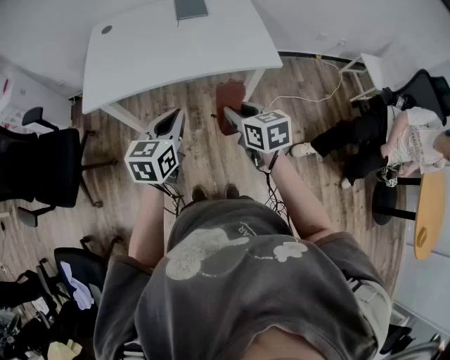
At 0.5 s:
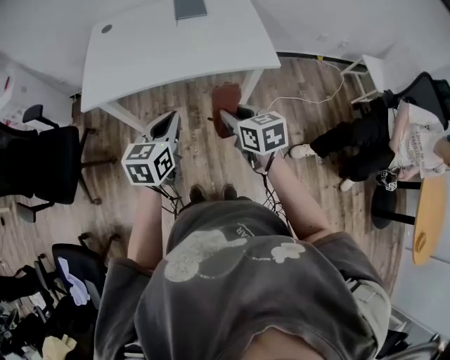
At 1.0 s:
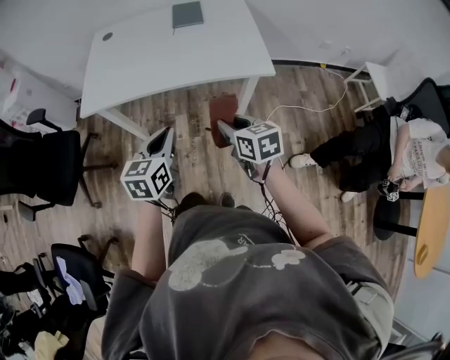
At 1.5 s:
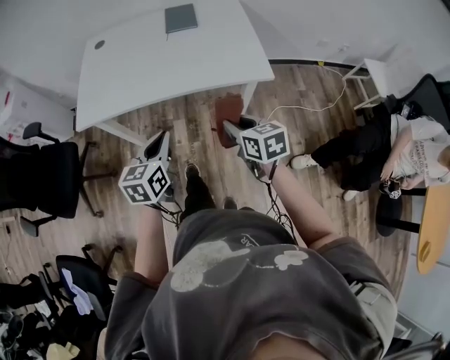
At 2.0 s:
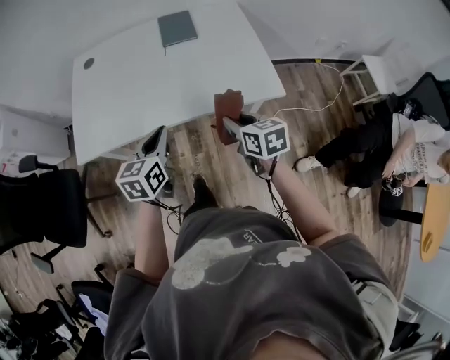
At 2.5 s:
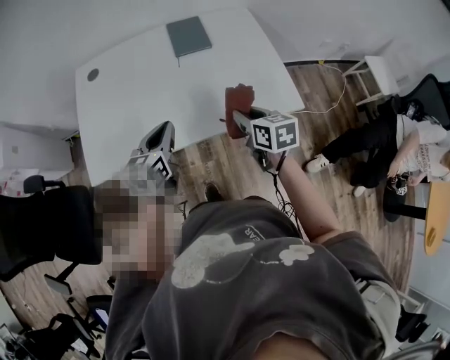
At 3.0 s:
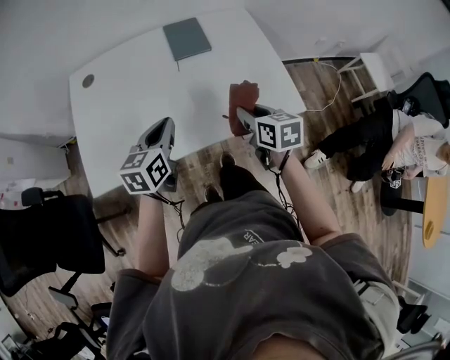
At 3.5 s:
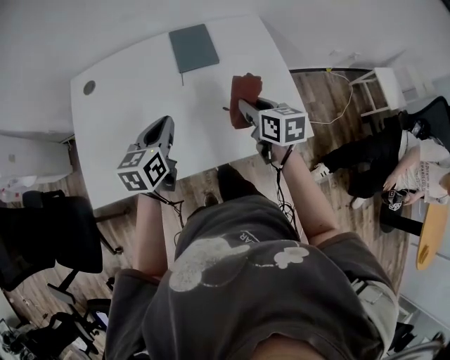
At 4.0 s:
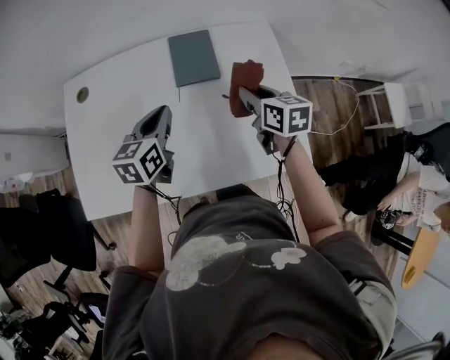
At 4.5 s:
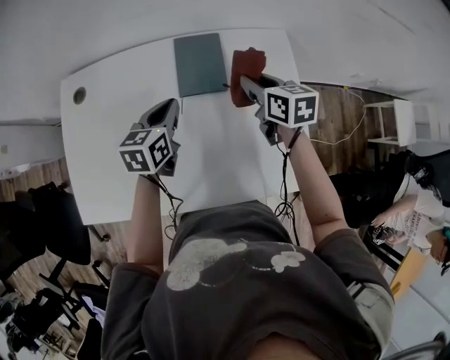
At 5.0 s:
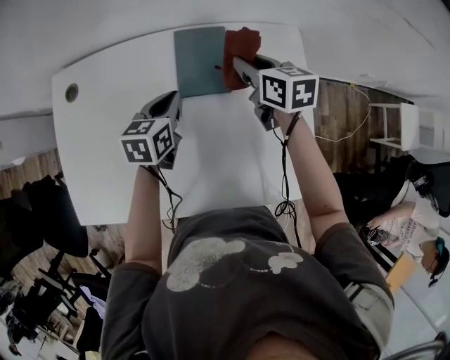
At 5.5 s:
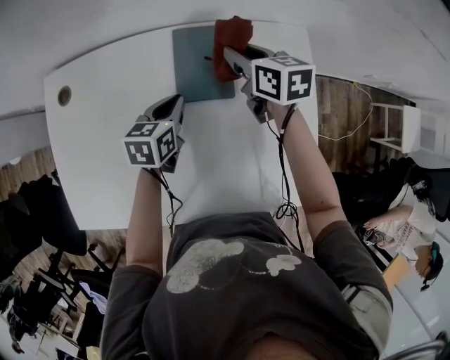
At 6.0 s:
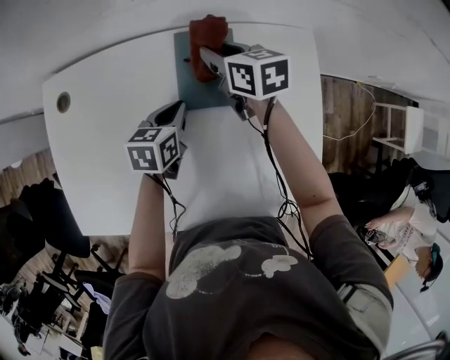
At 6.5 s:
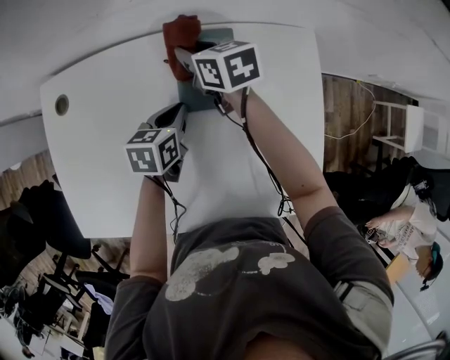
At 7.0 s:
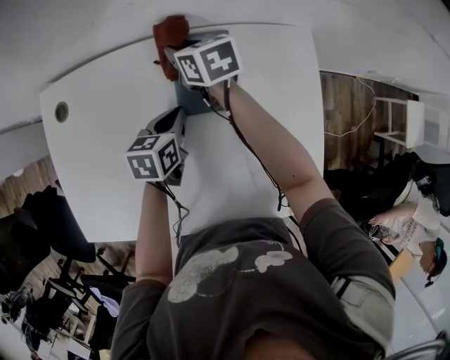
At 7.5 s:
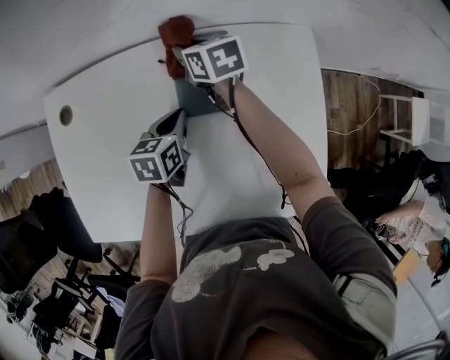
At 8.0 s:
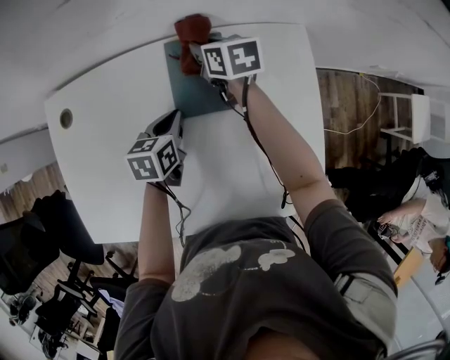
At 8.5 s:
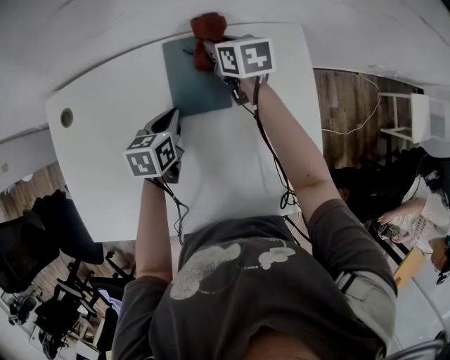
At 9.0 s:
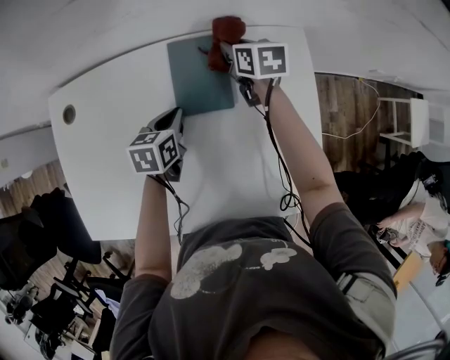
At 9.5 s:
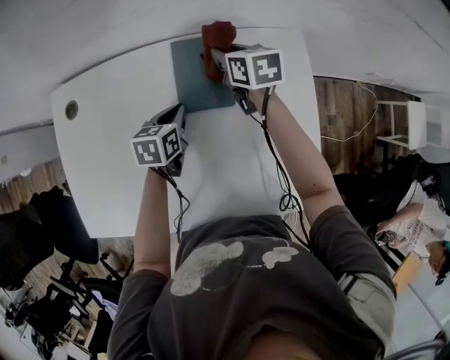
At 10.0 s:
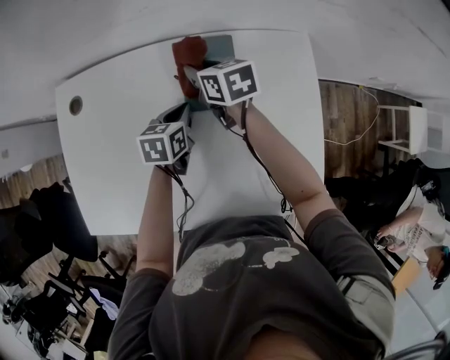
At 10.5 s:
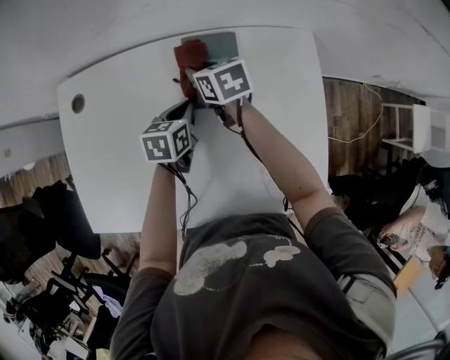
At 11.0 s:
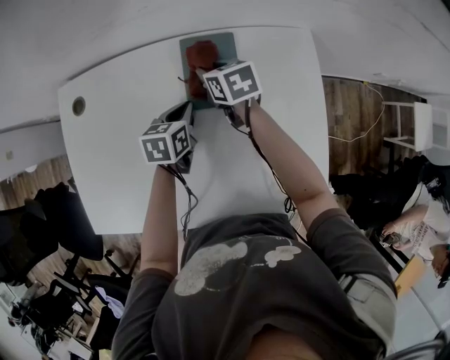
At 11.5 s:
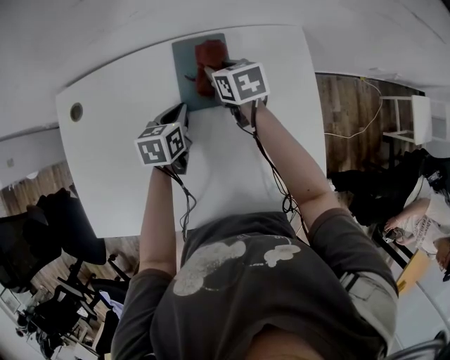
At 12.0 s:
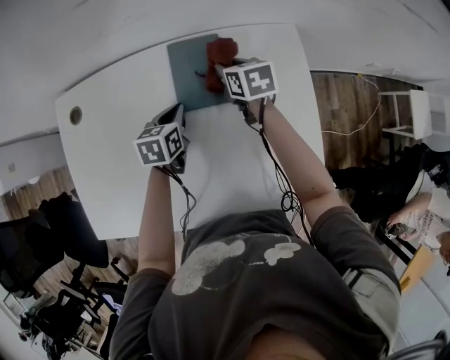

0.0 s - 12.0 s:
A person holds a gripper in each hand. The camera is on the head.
0.0 s - 2.0 s: The grippers both shift forward by roughly 15 cm.
2.0 s - 4.0 s: The two grippers go approximately 35 cm forward.
4.0 s - 6.0 s: The right gripper moves forward, some 25 cm; the left gripper is displaced downward and forward by some 20 cm, and swivels some 20 degrees.
6.0 s - 8.0 s: The right gripper reaches about 5 cm to the left, then returns.
8.0 s - 10.0 s: The right gripper shifts some 10 cm backward and to the left.
10.0 s - 12.0 s: The right gripper is displaced to the right by about 10 cm.

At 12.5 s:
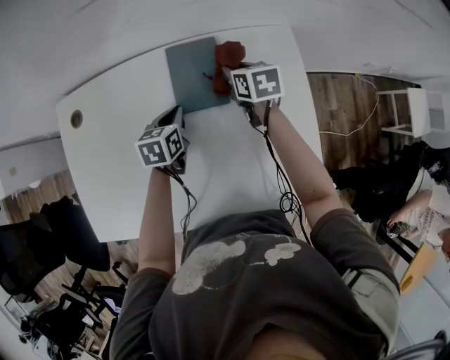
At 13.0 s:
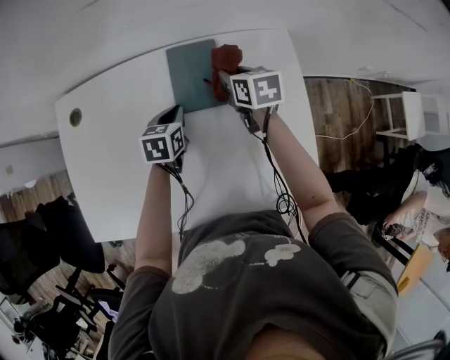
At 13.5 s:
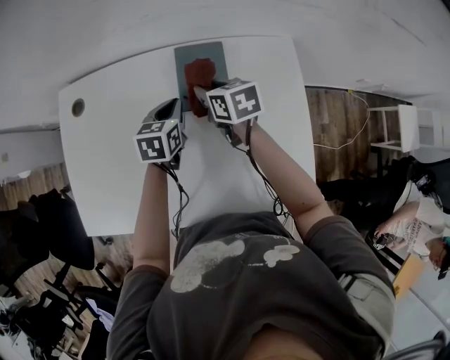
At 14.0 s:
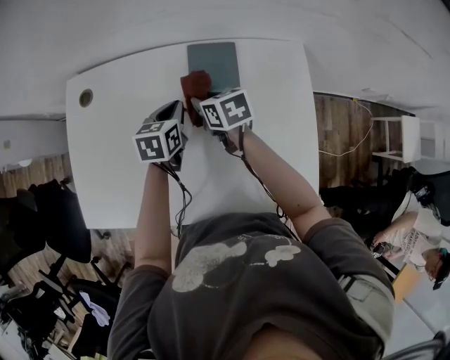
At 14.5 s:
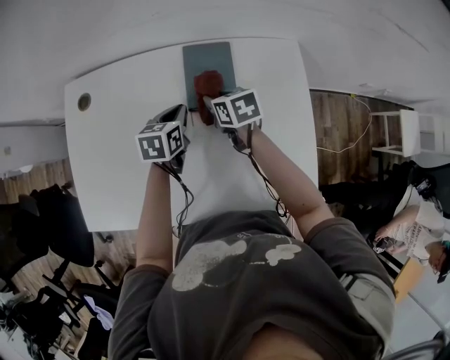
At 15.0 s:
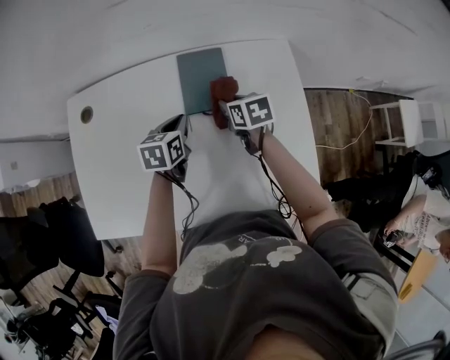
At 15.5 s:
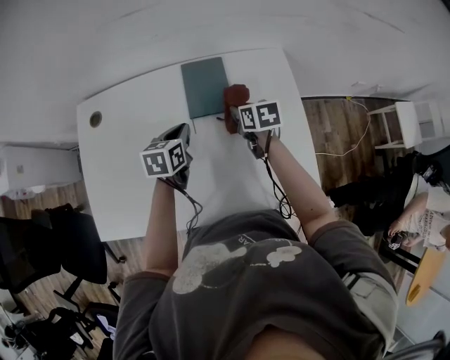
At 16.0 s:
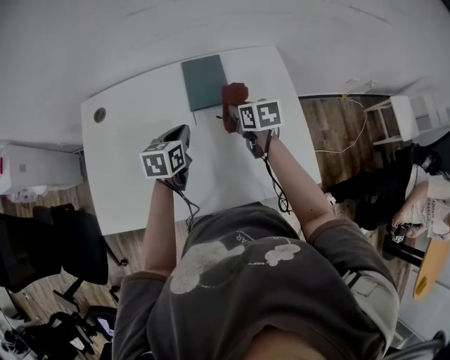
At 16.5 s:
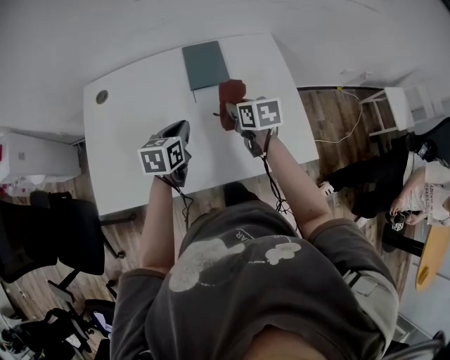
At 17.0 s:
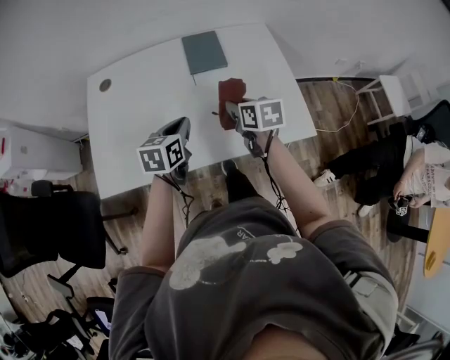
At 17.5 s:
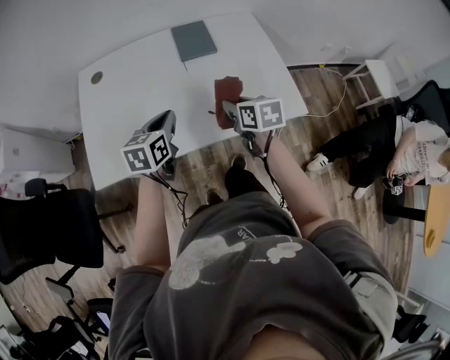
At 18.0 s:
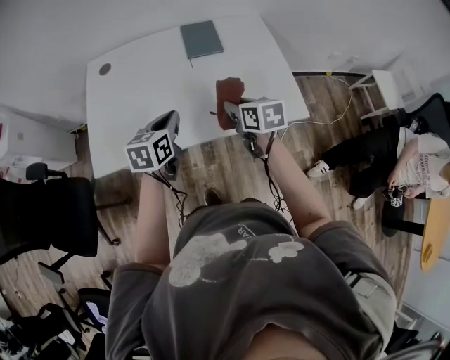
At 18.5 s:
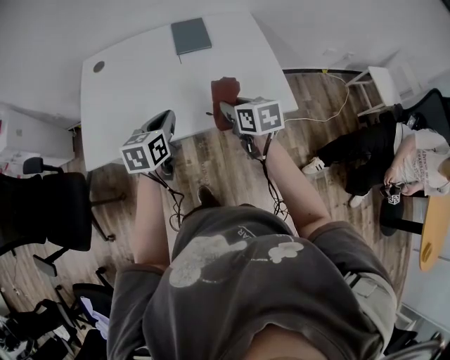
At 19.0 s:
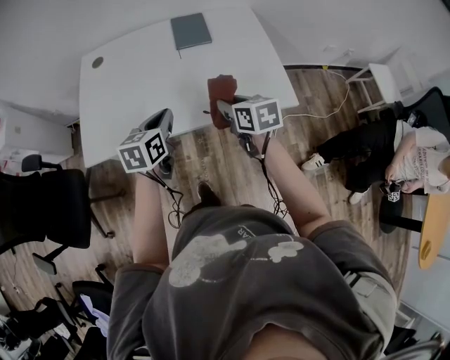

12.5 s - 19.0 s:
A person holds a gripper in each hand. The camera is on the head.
12.5 s - 14.5 s: The right gripper is displaced to the left and backward by some 15 cm.
14.5 s - 17.0 s: The two grippers go about 25 cm backward.
17.0 s - 19.0 s: The two grippers go some 10 cm backward.

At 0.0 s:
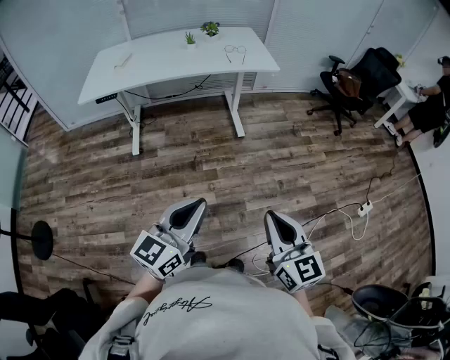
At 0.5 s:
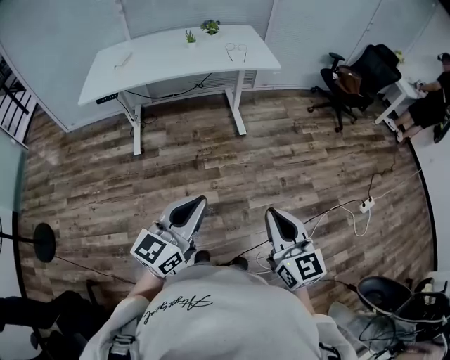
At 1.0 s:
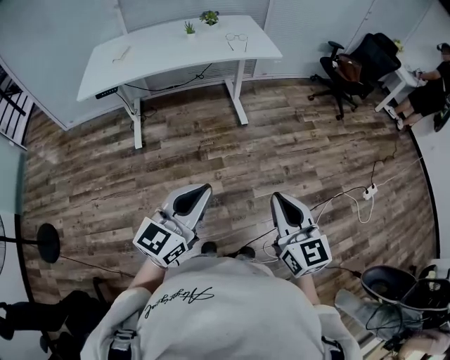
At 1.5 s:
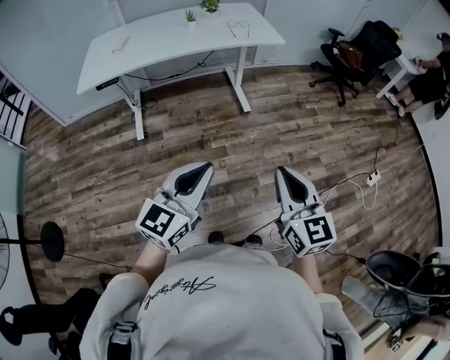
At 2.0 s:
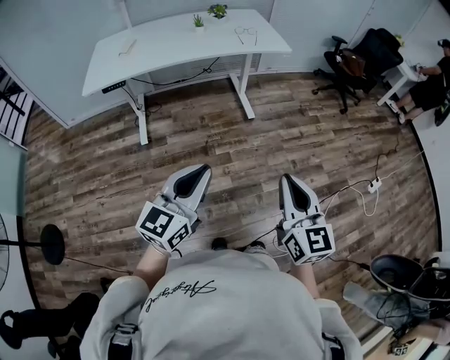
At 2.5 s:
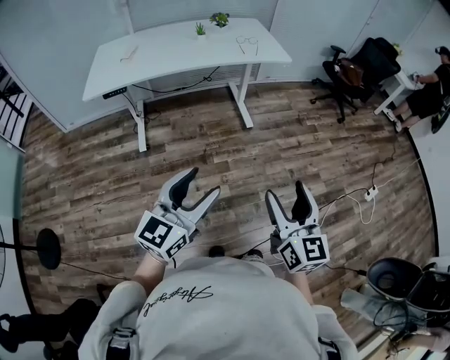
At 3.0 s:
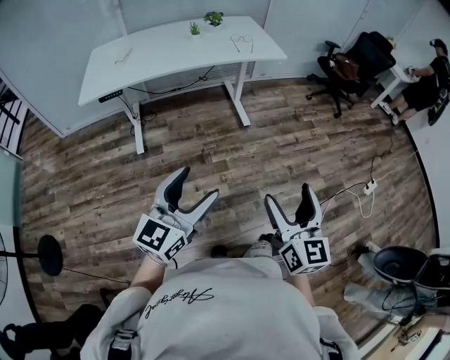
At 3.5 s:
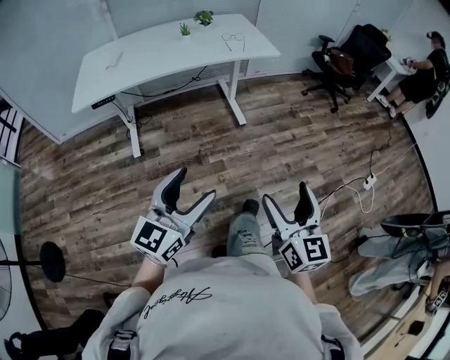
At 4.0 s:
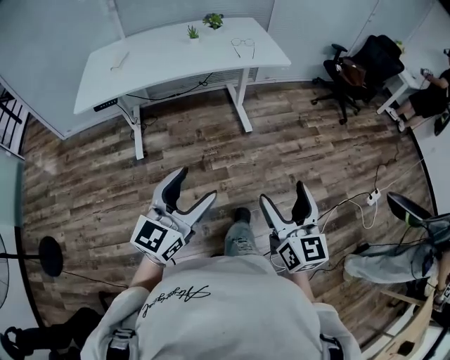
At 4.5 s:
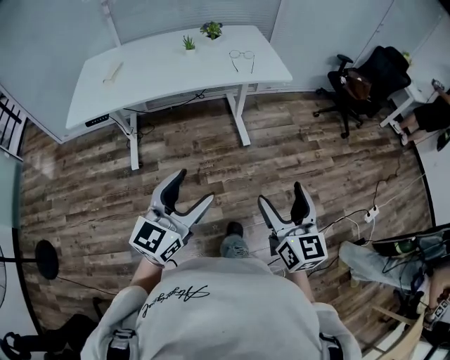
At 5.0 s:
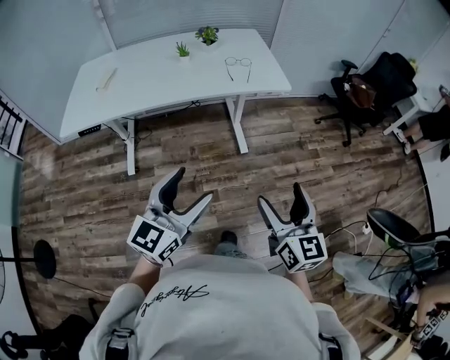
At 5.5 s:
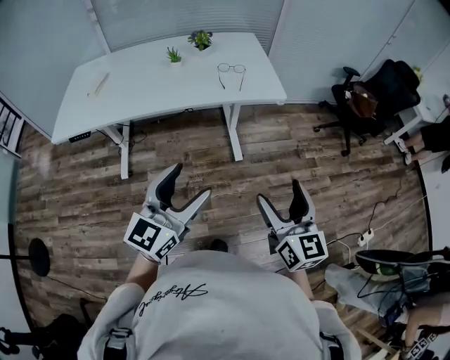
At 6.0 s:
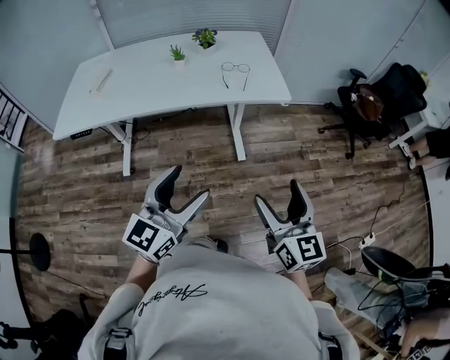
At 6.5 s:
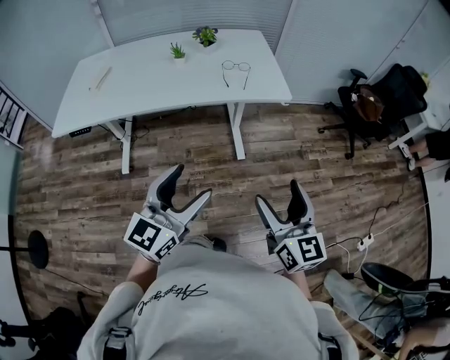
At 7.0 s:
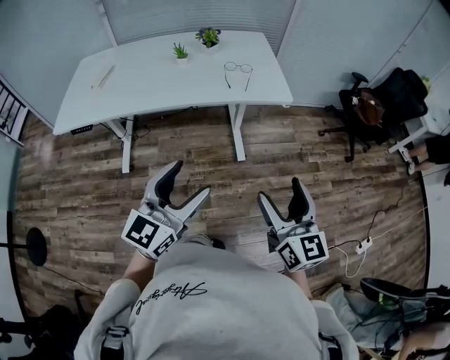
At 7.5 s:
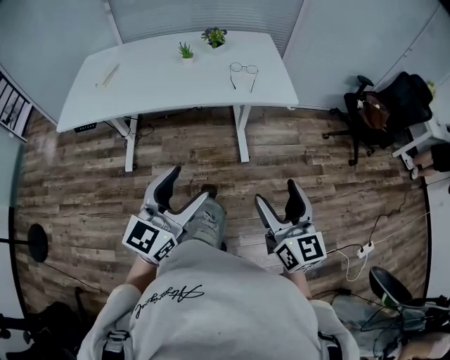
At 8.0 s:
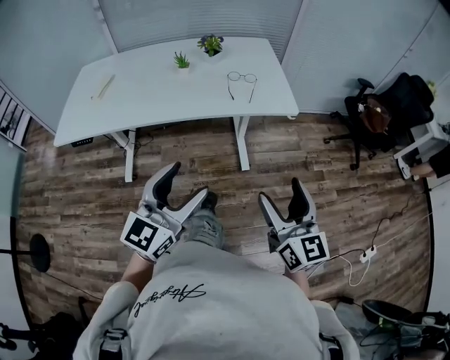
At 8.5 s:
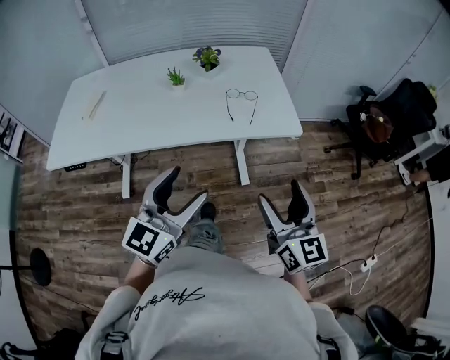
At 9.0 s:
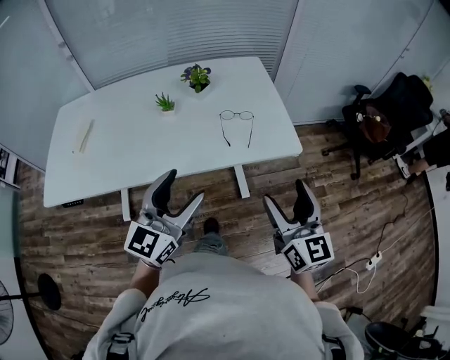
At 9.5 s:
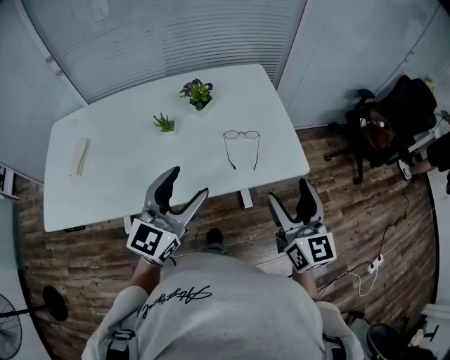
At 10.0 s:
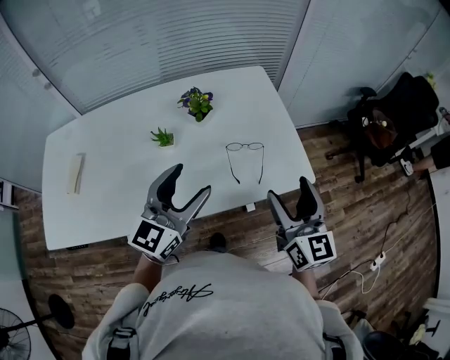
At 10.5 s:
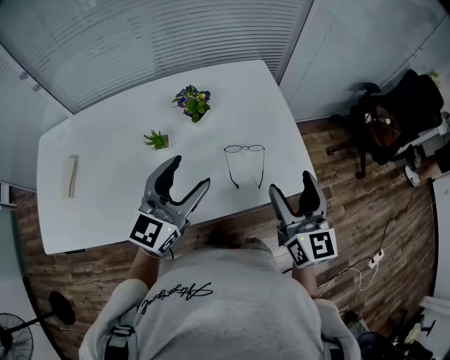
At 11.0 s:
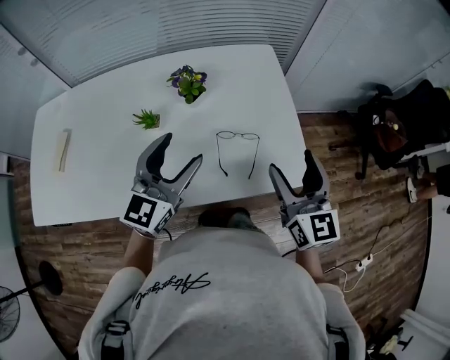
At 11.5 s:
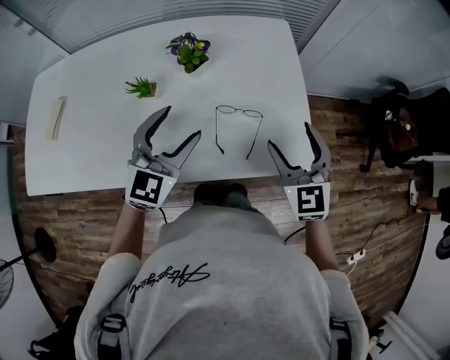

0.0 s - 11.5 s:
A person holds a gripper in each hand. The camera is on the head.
0.0 s - 2.0 s: Both grippers move to the left, some 10 cm.
2.0 s - 4.0 s: Both grippers move forward, about 5 cm. The left gripper opens up. Meanwhile the right gripper opens.
4.0 s - 6.0 s: The two grippers go some 25 cm forward.
6.0 s - 7.5 s: Both grippers stay put.
7.5 s - 9.5 s: The grippers both shift forward by some 35 cm.
9.5 s - 11.5 s: Both grippers travel together forward and downward, roughly 20 cm. The right gripper swivels about 30 degrees. The left gripper swivels about 20 degrees.
